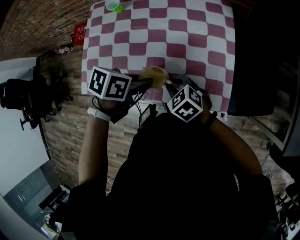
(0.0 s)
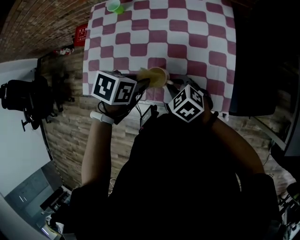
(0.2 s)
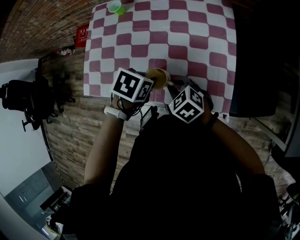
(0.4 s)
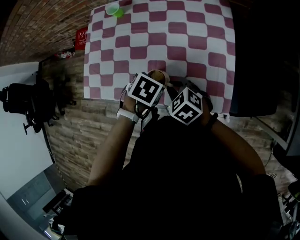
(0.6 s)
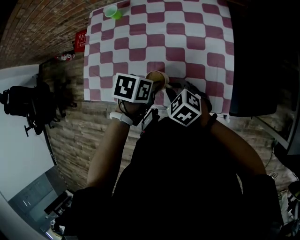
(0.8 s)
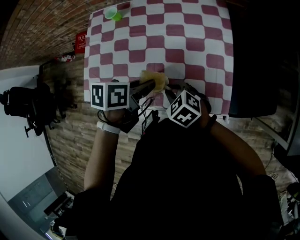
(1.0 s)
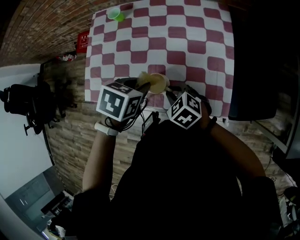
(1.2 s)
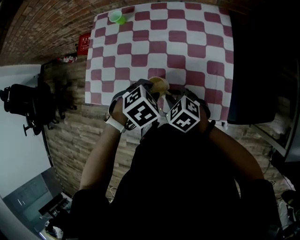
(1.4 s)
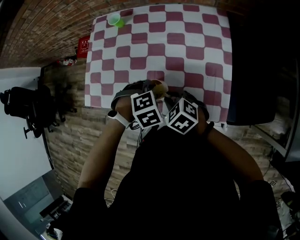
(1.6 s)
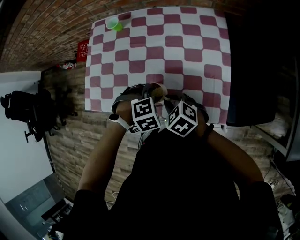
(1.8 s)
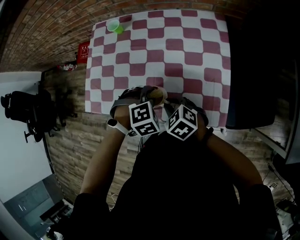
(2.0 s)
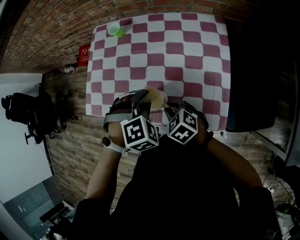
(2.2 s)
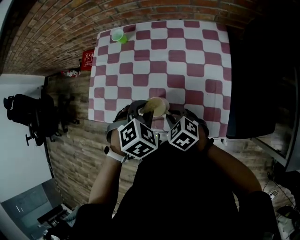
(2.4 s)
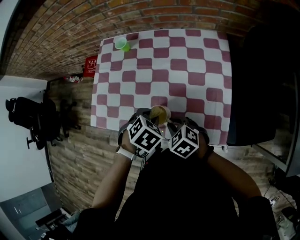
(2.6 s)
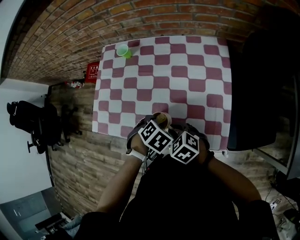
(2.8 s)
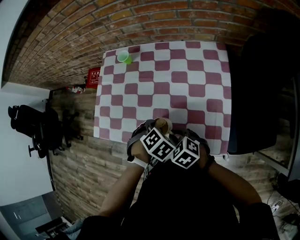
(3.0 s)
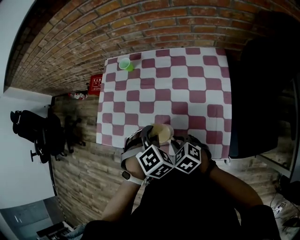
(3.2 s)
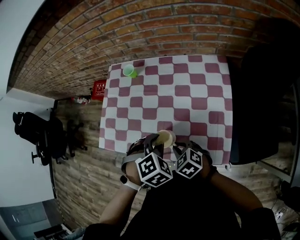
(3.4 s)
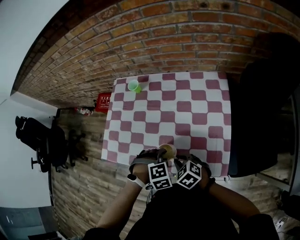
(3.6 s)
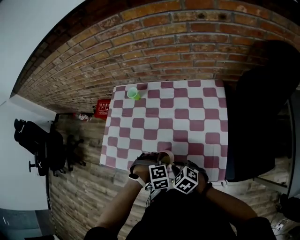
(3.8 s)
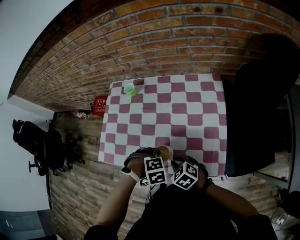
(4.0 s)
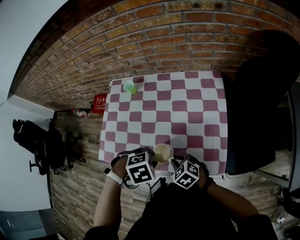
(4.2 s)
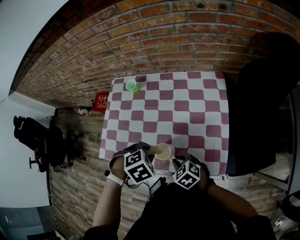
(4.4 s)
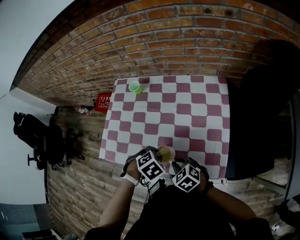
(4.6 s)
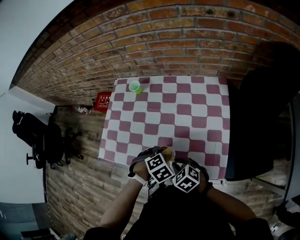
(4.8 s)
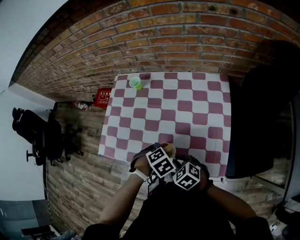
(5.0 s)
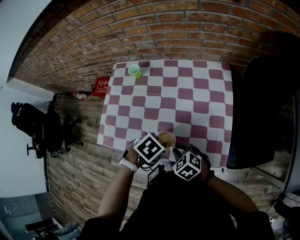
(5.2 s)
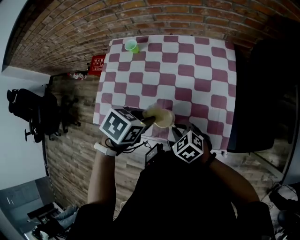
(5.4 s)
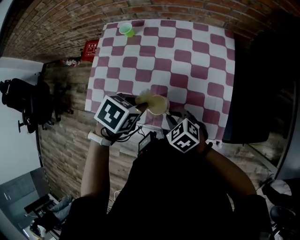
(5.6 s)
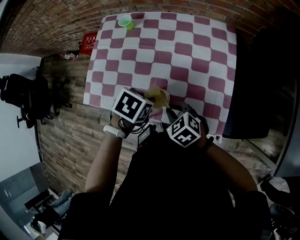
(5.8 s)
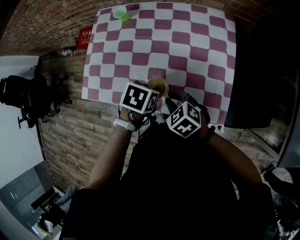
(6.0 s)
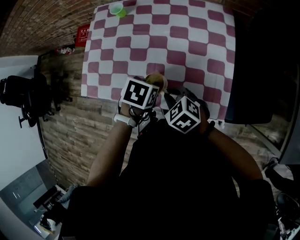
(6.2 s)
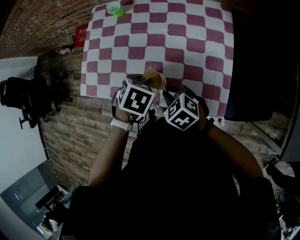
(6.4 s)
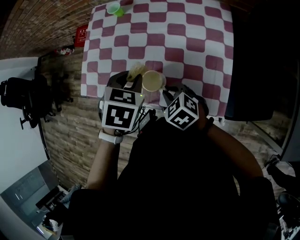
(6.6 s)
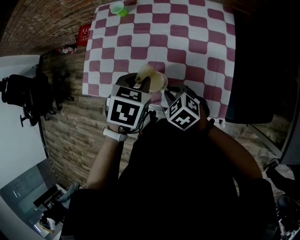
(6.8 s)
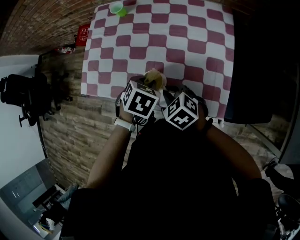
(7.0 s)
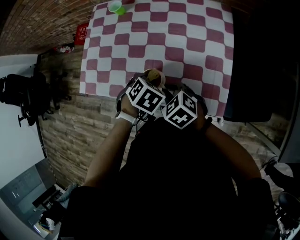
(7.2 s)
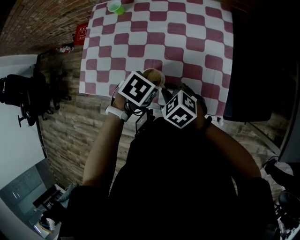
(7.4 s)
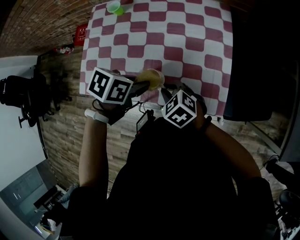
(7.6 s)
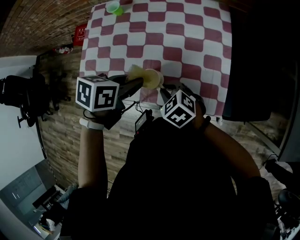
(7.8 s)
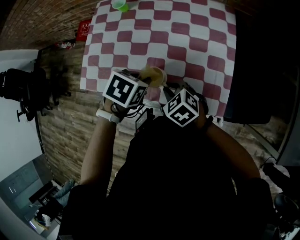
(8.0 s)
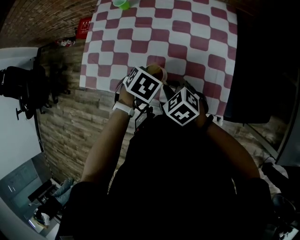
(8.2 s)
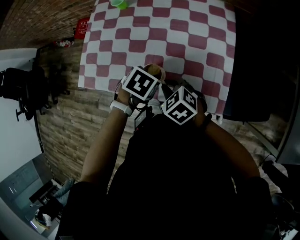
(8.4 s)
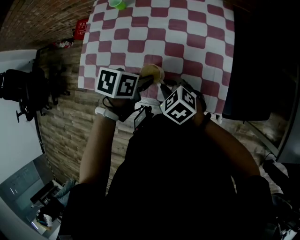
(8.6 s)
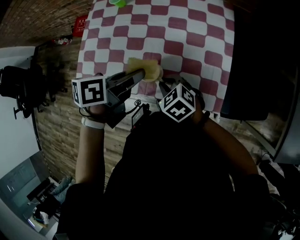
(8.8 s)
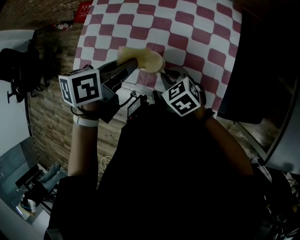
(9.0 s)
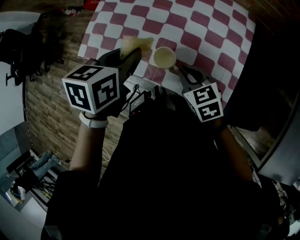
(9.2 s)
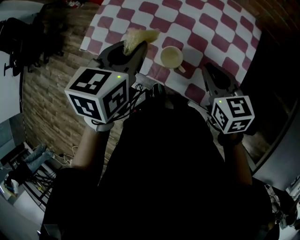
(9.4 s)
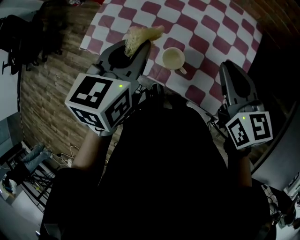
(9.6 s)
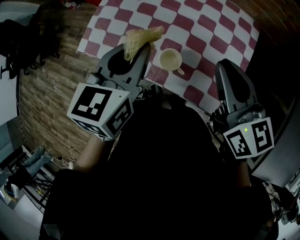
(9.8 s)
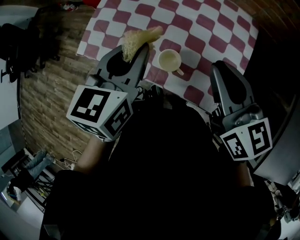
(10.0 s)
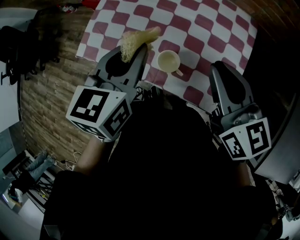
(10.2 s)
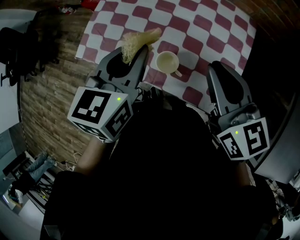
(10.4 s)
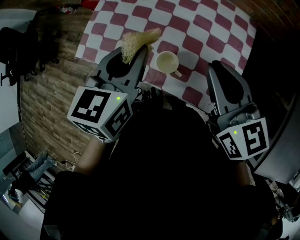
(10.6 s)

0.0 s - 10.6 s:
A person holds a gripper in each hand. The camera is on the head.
0.0 s - 1.6 s: The left gripper swings up and down, approximately 10 cm each way, with 2 reversals, and twists about 60 degrees clockwise, seen from behind.
1.6 s - 3.0 s: The left gripper travels upward and back again, some 5 cm each way, and turns by some 30 degrees.
3.0 s - 4.6 s: The left gripper moves up and down over approximately 10 cm, changing direction 3 times.
4.6 s - 6.0 s: The left gripper moves some 10 cm upward and comes back, and changes its angle by some 40 degrees.
6.0 s - 7.6 s: The left gripper swings up and down, some 10 cm each way, with 2 reversals.
7.6 s - 9.0 s: The left gripper travels upward by some 5 cm, and swivels about 40 degrees.
9.0 s - 10.6 s: The left gripper heads upward, covering approximately 5 cm, and swivels roughly 40 degrees. Meanwhile the right gripper goes some 20 cm upward, and angles its fingers upward, by about 30 degrees.

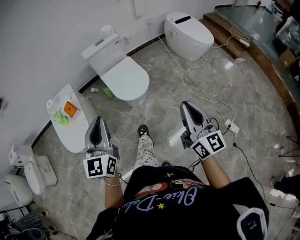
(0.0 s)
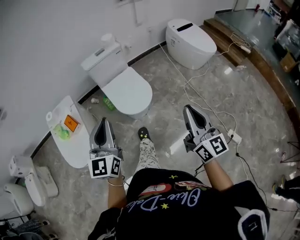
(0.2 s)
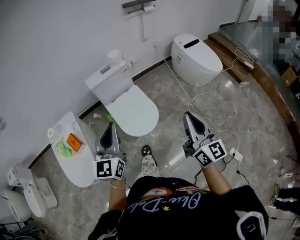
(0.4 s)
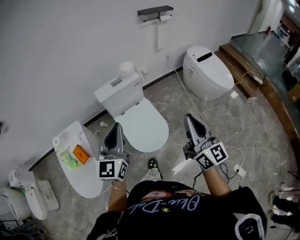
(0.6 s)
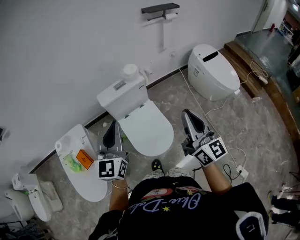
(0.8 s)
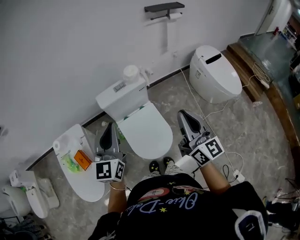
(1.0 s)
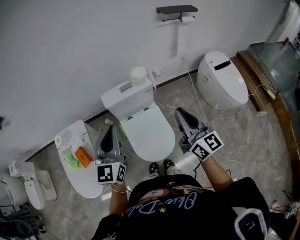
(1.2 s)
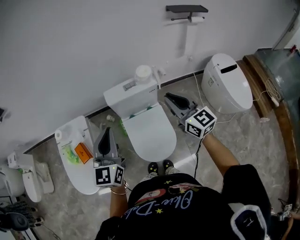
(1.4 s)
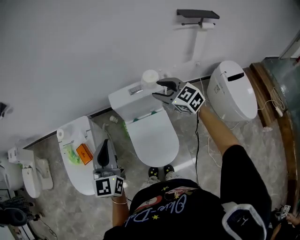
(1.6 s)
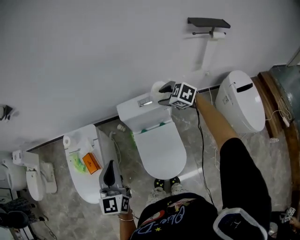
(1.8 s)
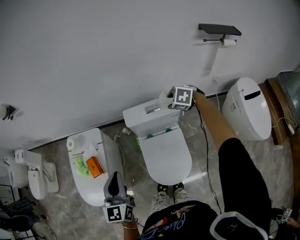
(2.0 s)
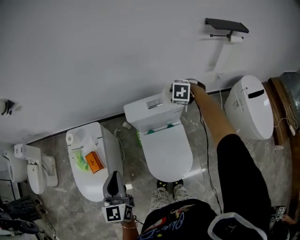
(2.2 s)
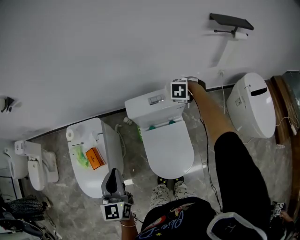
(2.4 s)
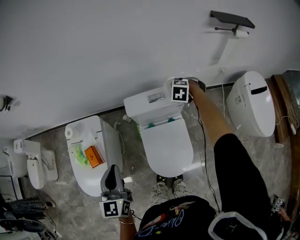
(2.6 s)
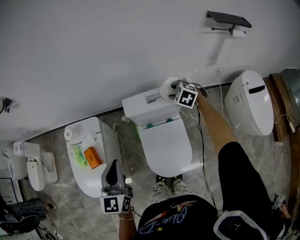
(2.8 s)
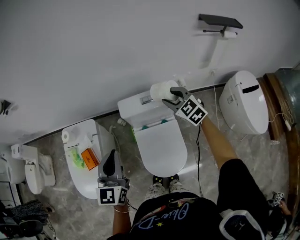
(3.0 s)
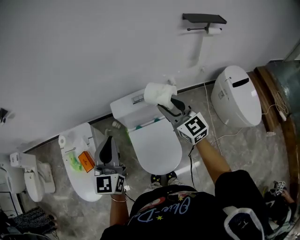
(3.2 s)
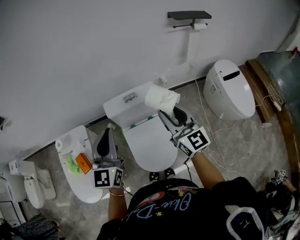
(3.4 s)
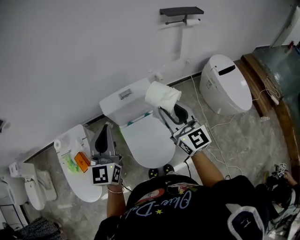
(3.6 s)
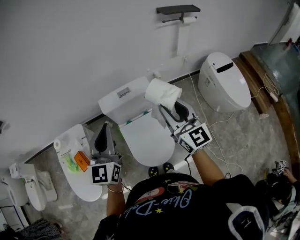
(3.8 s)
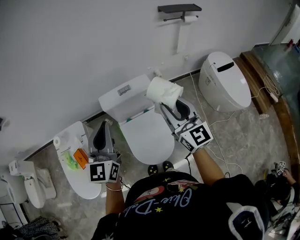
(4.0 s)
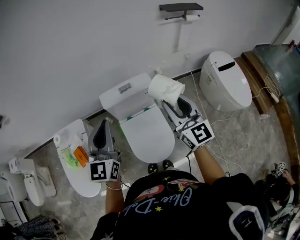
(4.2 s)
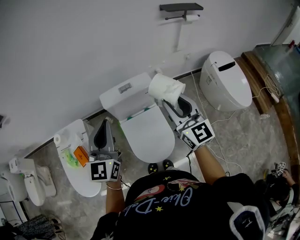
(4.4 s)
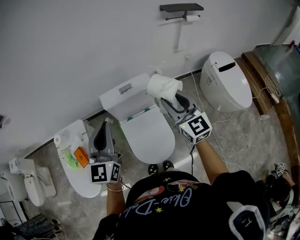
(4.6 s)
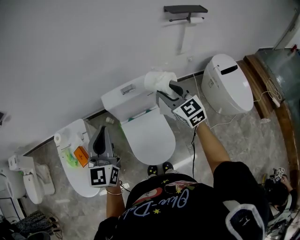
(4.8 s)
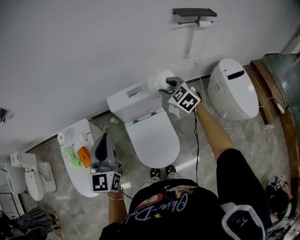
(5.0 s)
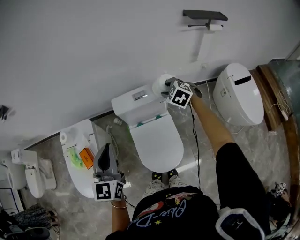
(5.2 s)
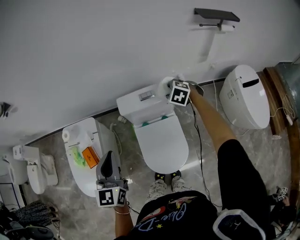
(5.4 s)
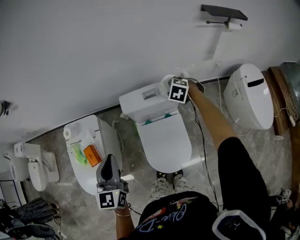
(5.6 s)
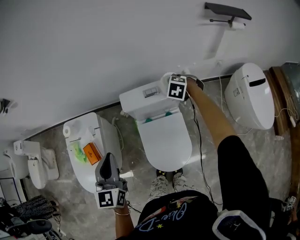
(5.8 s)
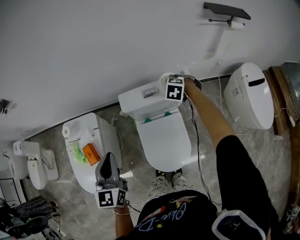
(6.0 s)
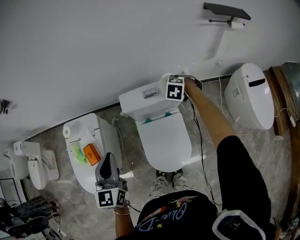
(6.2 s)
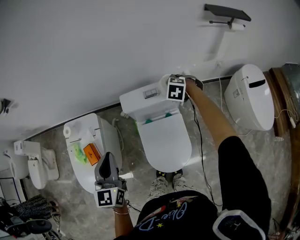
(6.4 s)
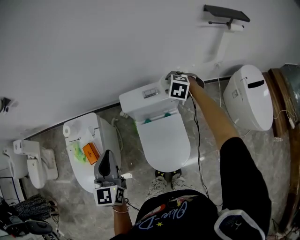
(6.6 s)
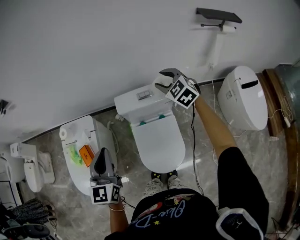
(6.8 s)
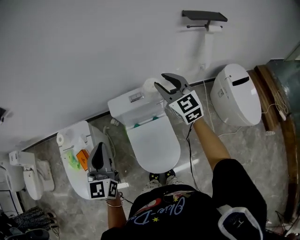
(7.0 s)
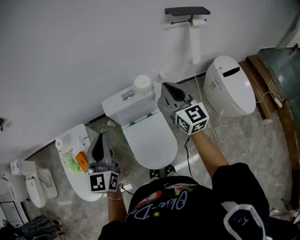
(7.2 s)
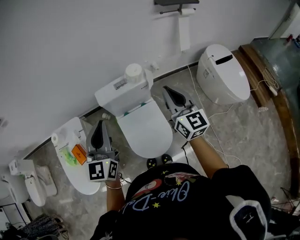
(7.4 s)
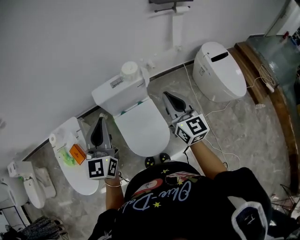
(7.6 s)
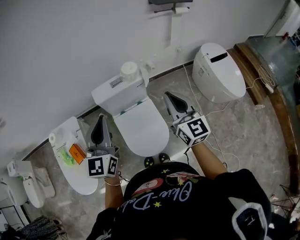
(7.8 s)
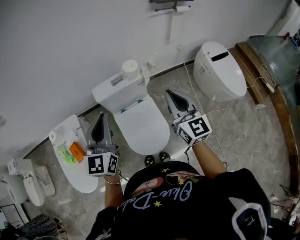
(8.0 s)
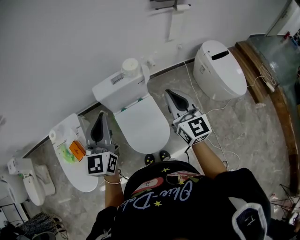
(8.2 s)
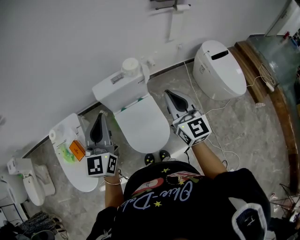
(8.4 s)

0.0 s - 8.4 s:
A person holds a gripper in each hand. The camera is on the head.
0.0 s - 1.4 s: The two grippers travel together, roughly 50 cm. The right gripper rotates about 40 degrees.
1.4 s - 2.8 s: The right gripper moves approximately 30 cm, tips its fingers downward by about 60 degrees, and opens up; the left gripper travels downward by roughly 5 cm.
2.8 s - 4.2 s: The right gripper heads backward and upward, covering some 35 cm, and tips its fingers upward by roughly 60 degrees; the left gripper moves upward and to the right, roughly 15 cm, and swivels approximately 20 degrees.
4.2 s - 5.6 s: The left gripper shifts about 15 cm to the left and downward, and swivels some 20 degrees. The right gripper shifts approximately 35 cm forward and downward, and tilts its fingers some 70 degrees downward.
5.6 s - 7.0 s: The left gripper changes place by approximately 5 cm. Meanwhile the right gripper travels upward by some 20 cm, and angles its fingers upward, by roughly 60 degrees.
7.0 s - 8.4 s: The right gripper travels backward by about 25 cm, rotates some 20 degrees, and closes, while the left gripper shifts some 10 cm to the right.

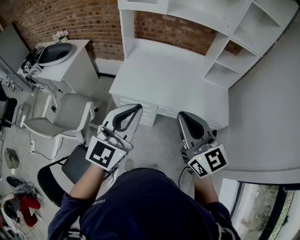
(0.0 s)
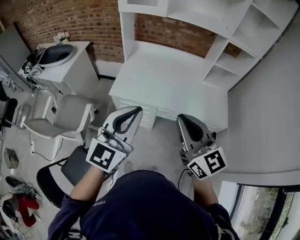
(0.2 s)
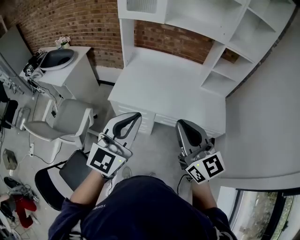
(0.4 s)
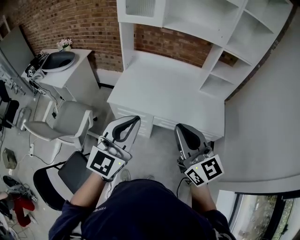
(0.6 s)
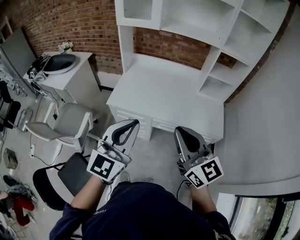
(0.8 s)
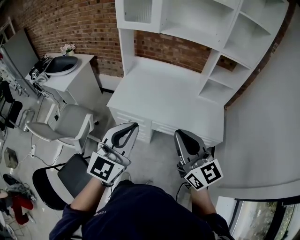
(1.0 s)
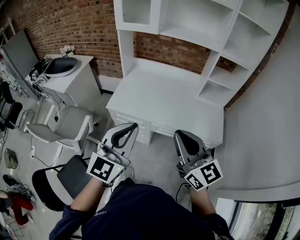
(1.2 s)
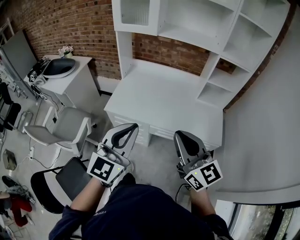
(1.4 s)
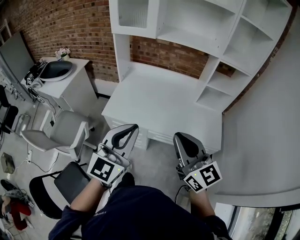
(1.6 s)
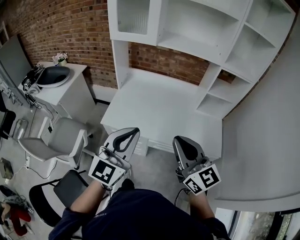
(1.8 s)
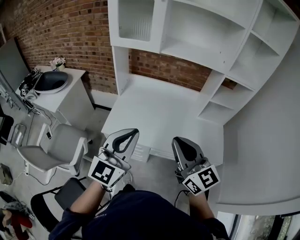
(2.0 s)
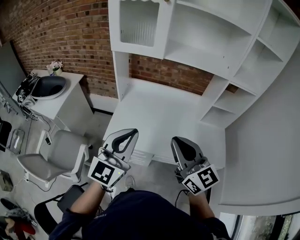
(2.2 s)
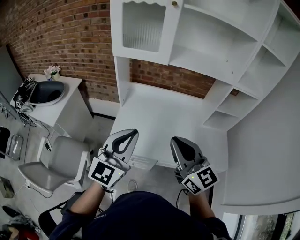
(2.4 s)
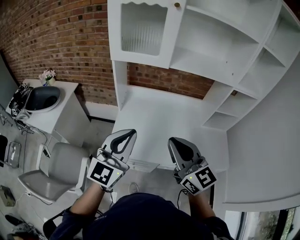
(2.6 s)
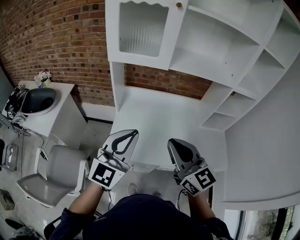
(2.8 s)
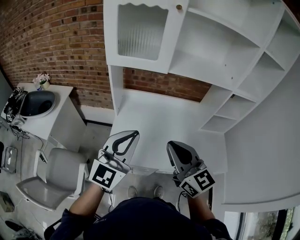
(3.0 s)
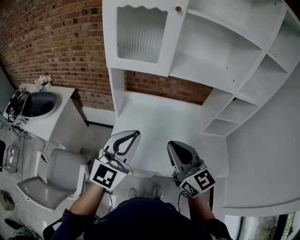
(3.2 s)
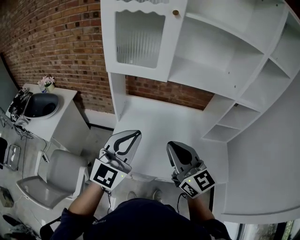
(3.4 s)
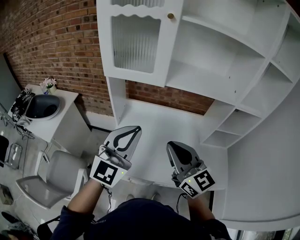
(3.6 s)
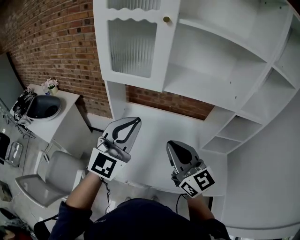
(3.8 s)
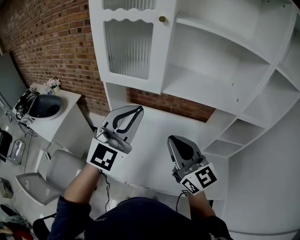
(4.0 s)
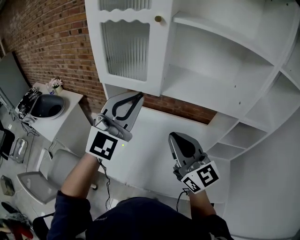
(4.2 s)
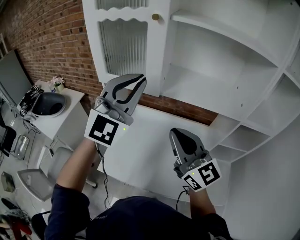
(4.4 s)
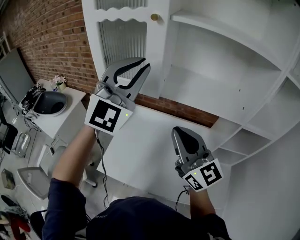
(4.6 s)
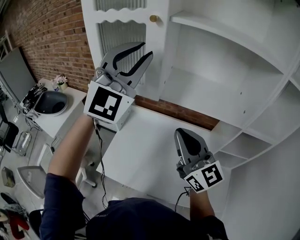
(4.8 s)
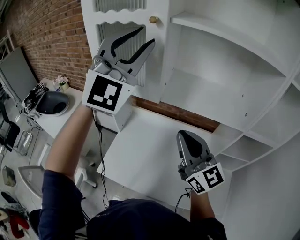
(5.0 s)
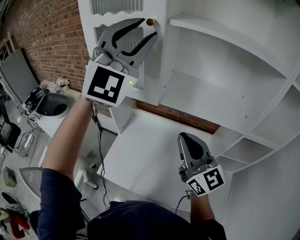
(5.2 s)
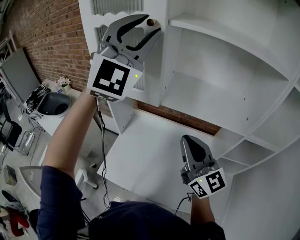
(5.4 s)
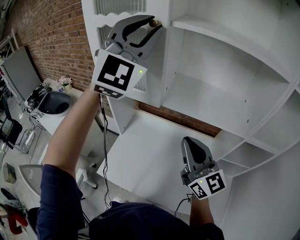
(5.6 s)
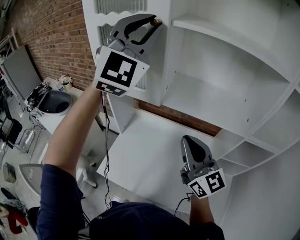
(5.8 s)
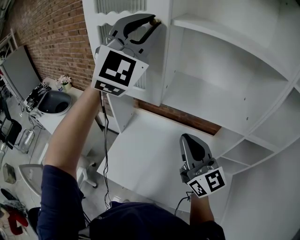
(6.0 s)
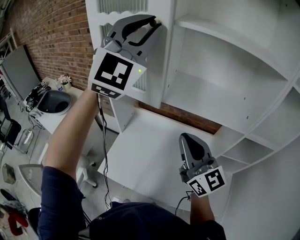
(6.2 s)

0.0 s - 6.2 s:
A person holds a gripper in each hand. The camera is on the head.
0.0 s - 1.6 s: Both grippers move to the right, some 5 cm.
1.6 s - 3.2 s: The two grippers go some 30 cm forward and to the left.
3.2 s - 4.6 s: The right gripper is displaced forward, to the right and upward by roughly 20 cm. Meanwhile the left gripper shifts about 30 cm forward, upward and to the right, and rotates approximately 40 degrees.
4.6 s - 6.2 s: The left gripper moves upward, roughly 10 cm.
